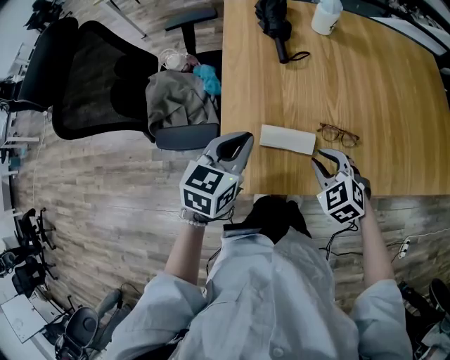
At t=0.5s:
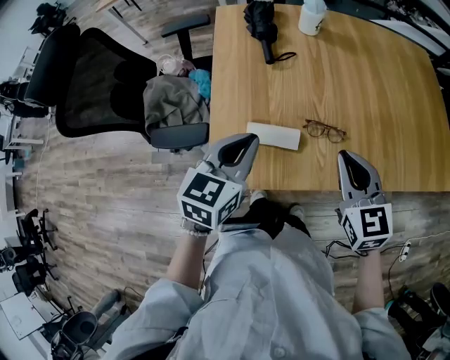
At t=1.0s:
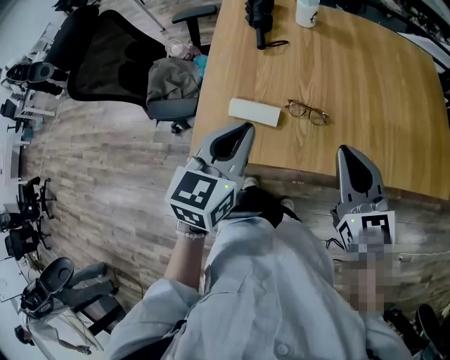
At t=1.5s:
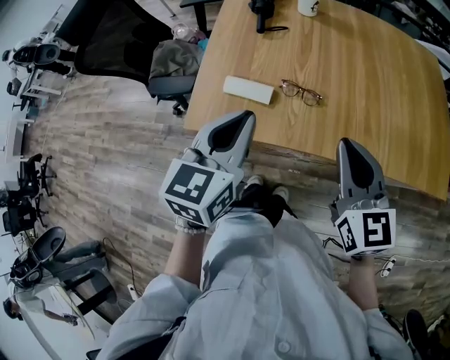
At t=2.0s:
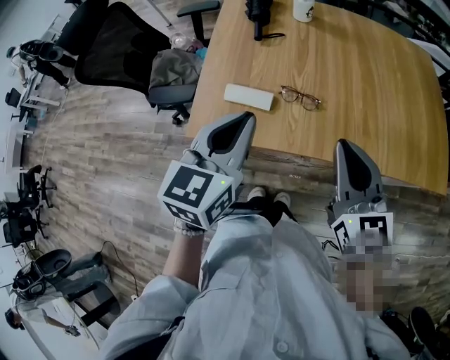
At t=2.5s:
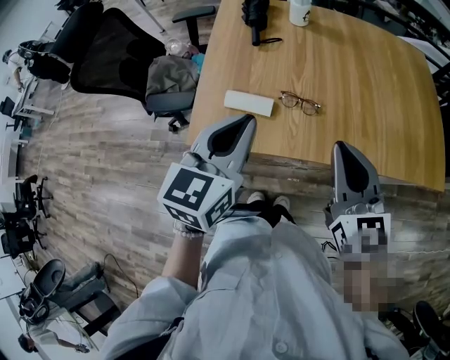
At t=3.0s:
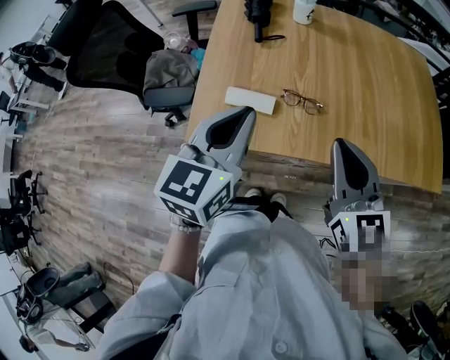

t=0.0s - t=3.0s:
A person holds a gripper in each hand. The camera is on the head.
t=0.0s - t=1.5s: The left gripper moves to the right, backward and upward, roughly 25 cm; the right gripper travels upward, to the right and backward by roughly 30 cm, tips its fingers upward by some 40 degrees, and closes.
t=1.5s - t=3.0s: The right gripper changes place by roughly 5 cm.

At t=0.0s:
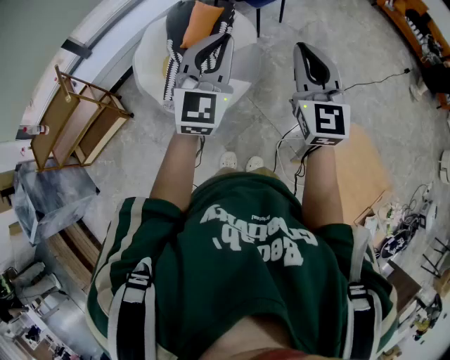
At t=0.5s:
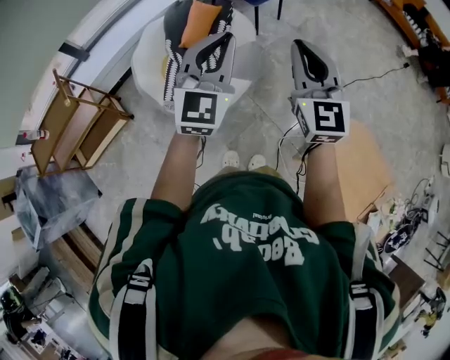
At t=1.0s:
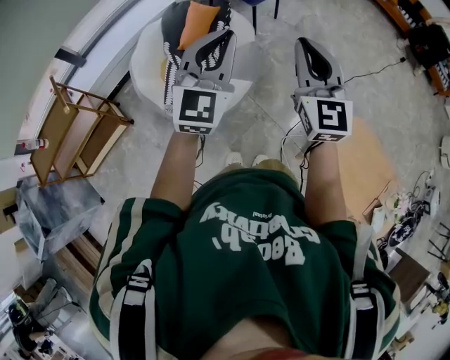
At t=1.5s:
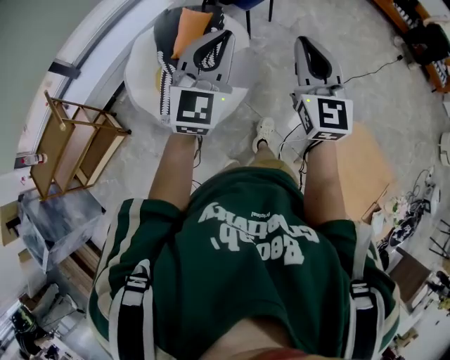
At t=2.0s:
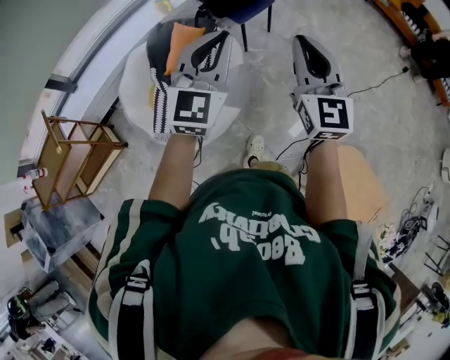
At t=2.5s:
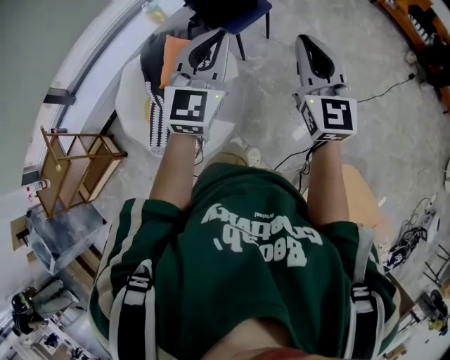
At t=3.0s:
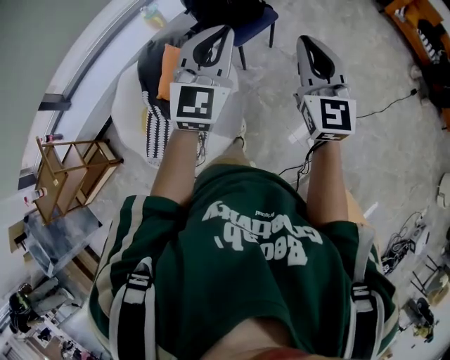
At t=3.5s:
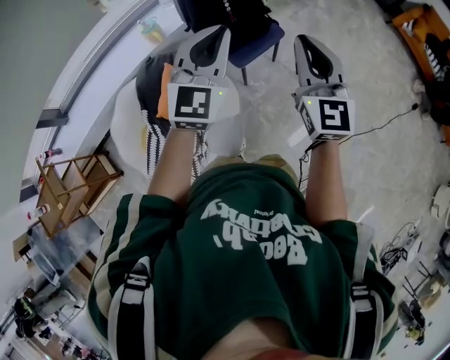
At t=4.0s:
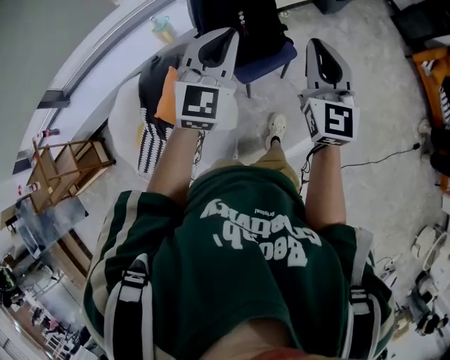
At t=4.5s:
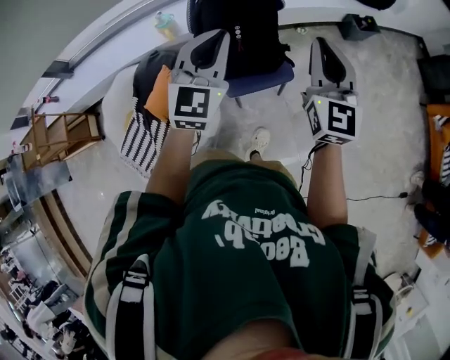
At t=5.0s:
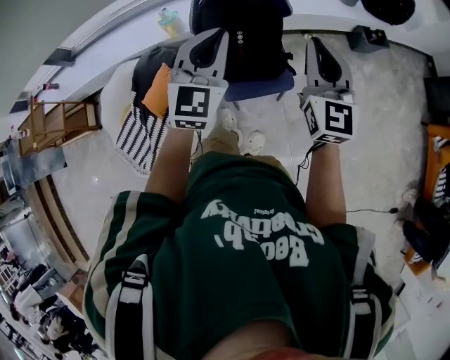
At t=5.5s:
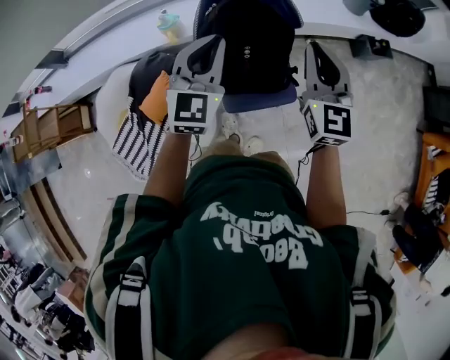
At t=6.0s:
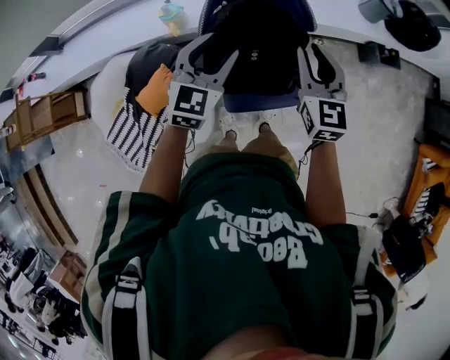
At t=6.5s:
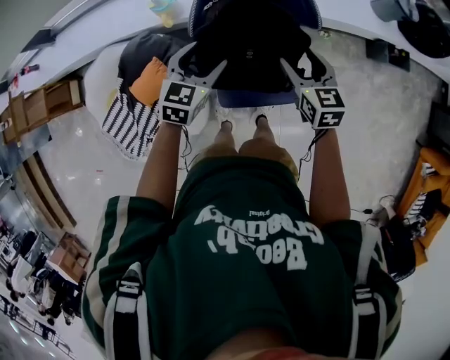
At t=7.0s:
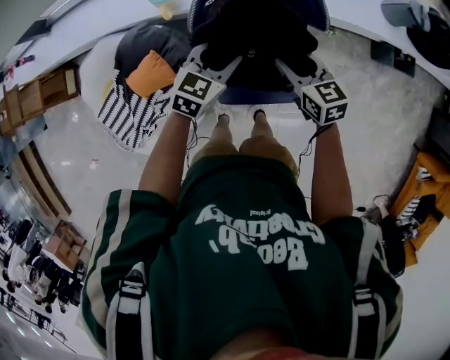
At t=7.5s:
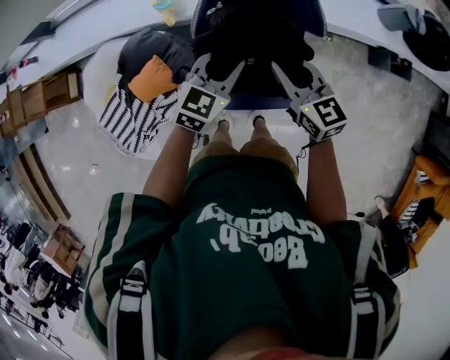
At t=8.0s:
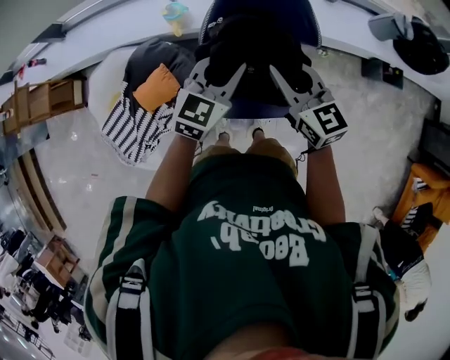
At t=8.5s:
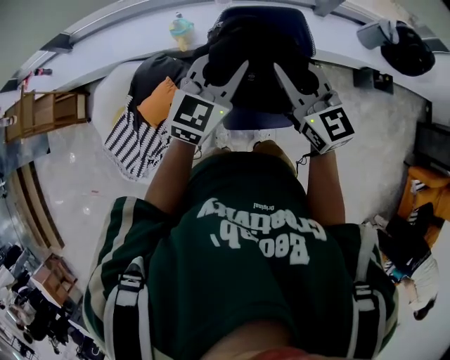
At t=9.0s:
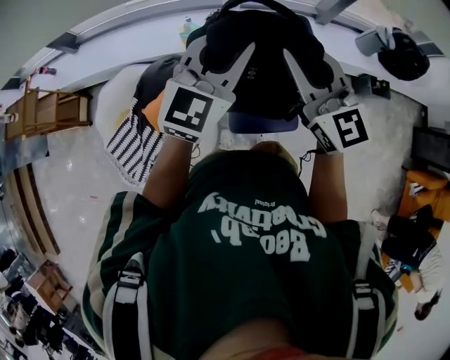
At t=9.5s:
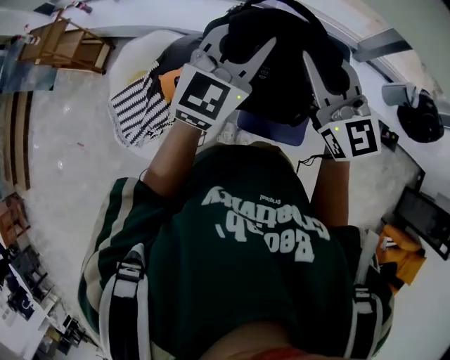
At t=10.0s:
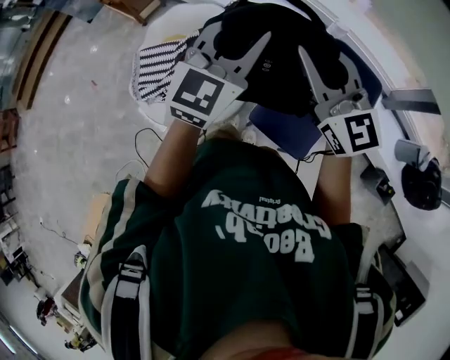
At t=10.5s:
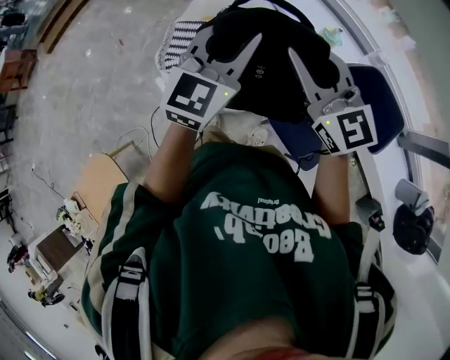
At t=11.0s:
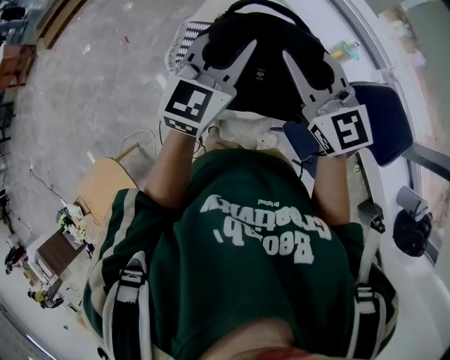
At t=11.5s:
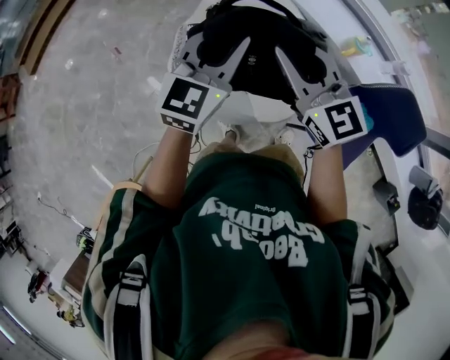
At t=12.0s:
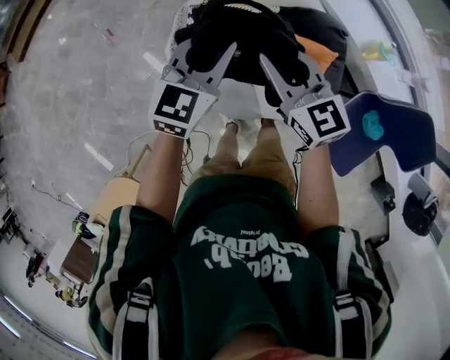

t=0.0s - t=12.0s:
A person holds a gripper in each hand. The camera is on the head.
t=0.0s - t=2.0s: The grippers both shift forward by approximately 30 cm.
t=2.0s - t=4.0s: Both grippers are carried forward, roughly 70 cm.
t=4.0s - t=6.0s: The left gripper travels forward and downward by approximately 40 cm, turns by approximately 30 degrees, and opens. Meanwhile the right gripper is displaced forward by some 50 cm, and swivels approximately 30 degrees.
t=6.0s - t=8.0s: The right gripper goes roughly 5 cm to the left, goes downward and returns, approximately 20 cm each way, turns by about 30 degrees, and opens, then closes again. The left gripper reaches some 15 cm downward, then returns, and closes up.
t=8.0s - t=10.0s: The right gripper ends up about 30 cm from where it was, and turns by roughly 40 degrees. The left gripper shifts by about 35 cm, and turns by about 40 degrees.
t=10.0s - t=12.0s: The two grippers travel together, to the left and forward, some 60 cm. The two grippers go about 25 cm downward. The left gripper rotates about 30 degrees. The right gripper changes its angle by approximately 30 degrees.

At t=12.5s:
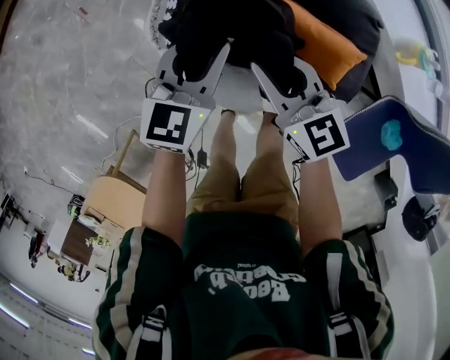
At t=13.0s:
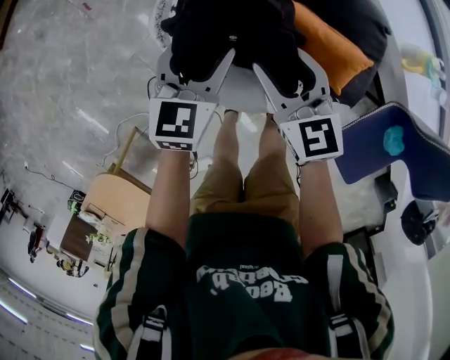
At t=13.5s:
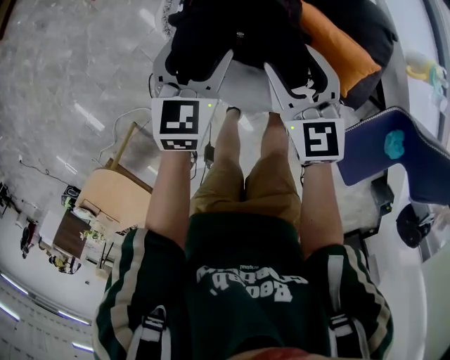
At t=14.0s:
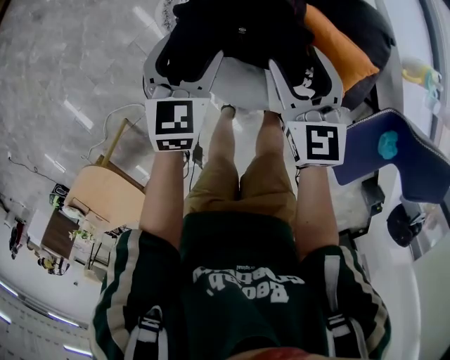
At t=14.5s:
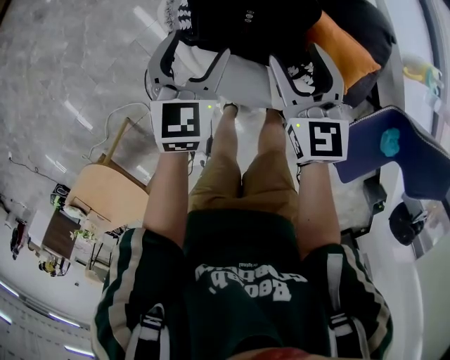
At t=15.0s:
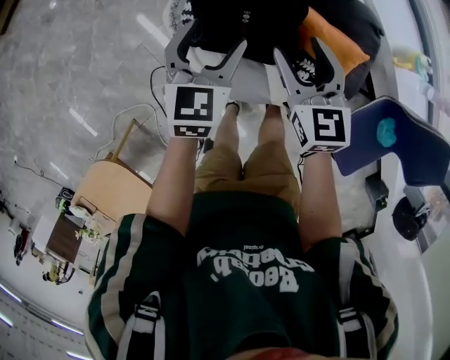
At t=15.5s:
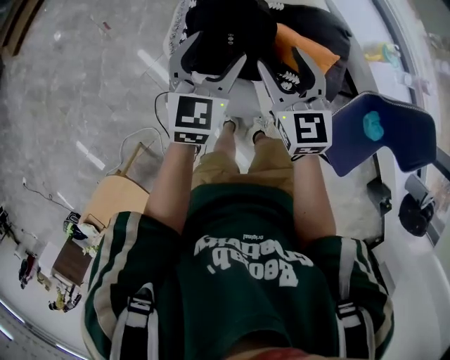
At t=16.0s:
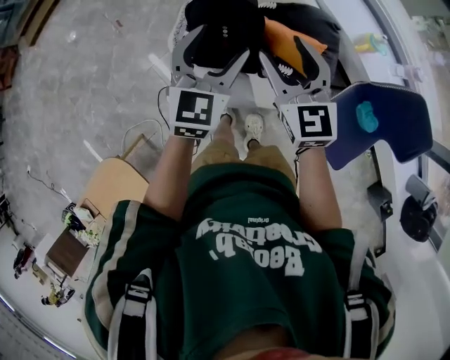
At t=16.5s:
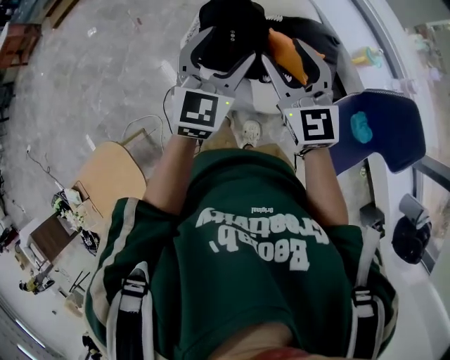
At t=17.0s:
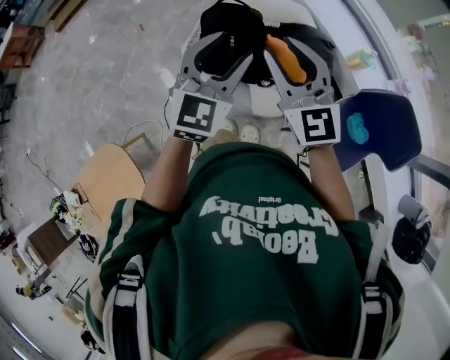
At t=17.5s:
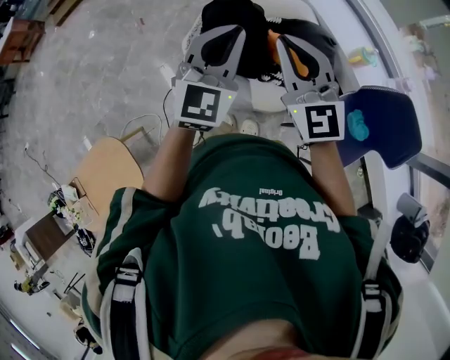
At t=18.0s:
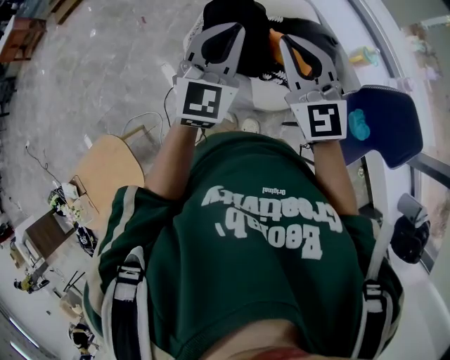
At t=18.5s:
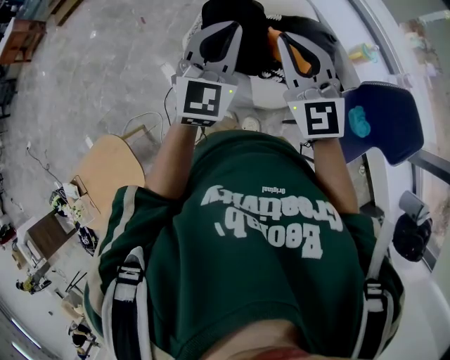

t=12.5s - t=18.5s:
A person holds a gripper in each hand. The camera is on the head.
t=12.5s - t=14.5s: The left gripper shifts some 15 cm to the left, and opens its fingers. Meanwhile the right gripper shifts about 5 cm to the left, and opens up.
t=14.5s - t=16.5s: The left gripper heads upward, backward and to the right, covering some 50 cm, and changes its angle by roughly 30 degrees. Meanwhile the right gripper shifts roughly 50 cm upward and backward, and changes its angle by about 30 degrees.
t=16.5s - t=18.5s: The left gripper is displaced upward by roughly 5 cm, and closes its fingers. Meanwhile the right gripper shifts some 10 cm upward and backward, and closes its fingers.

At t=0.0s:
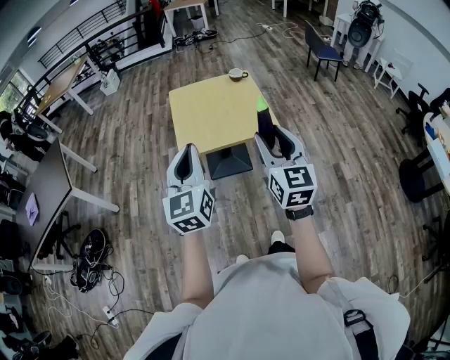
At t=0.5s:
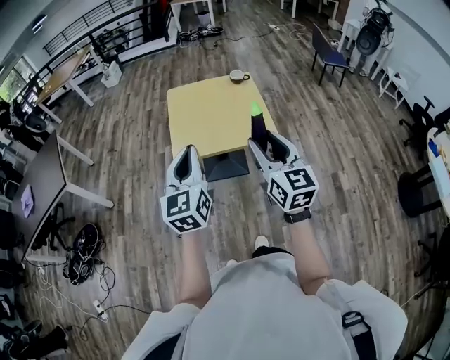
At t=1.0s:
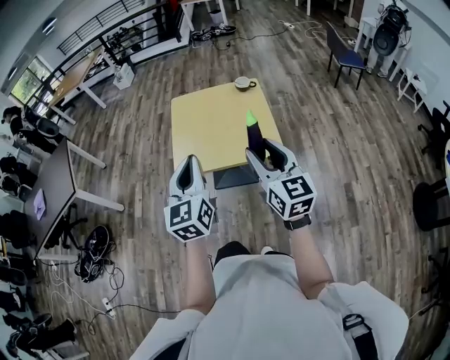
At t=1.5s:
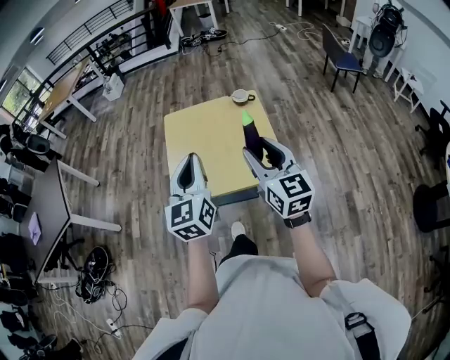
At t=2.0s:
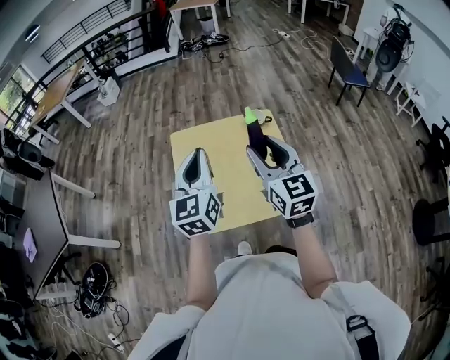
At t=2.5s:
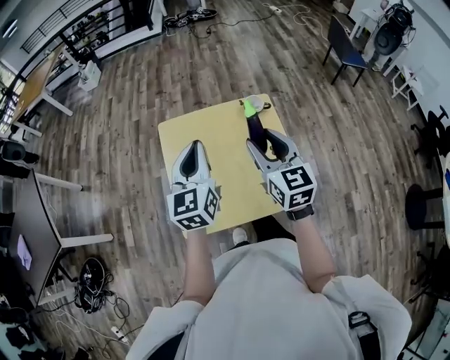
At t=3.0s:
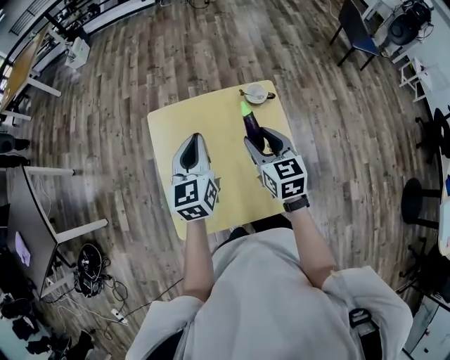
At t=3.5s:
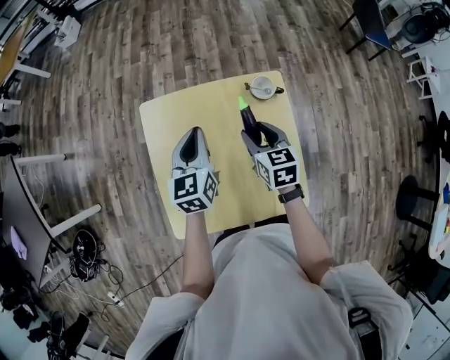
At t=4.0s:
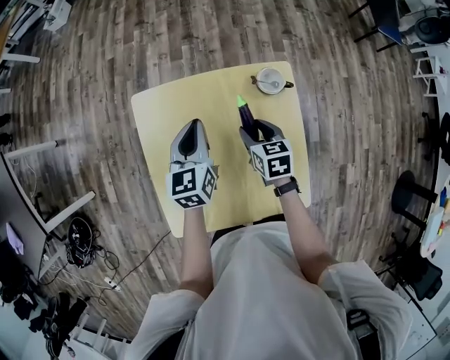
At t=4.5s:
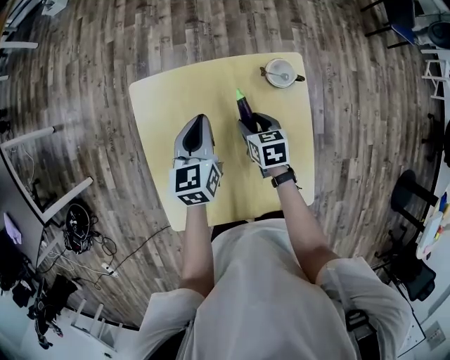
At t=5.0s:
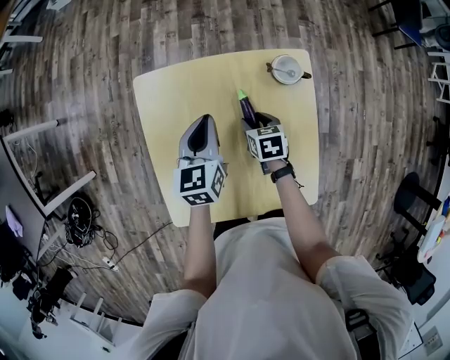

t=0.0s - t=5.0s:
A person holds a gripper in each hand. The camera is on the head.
t=0.0s - t=2.5s: Both grippers are carried forward, some 50 cm.
t=2.5s - t=5.0s: The grippers both shift downward and forward by some 35 cm. The left gripper turns by approximately 20 degrees. Meanwhile the right gripper points its fingers roughly 50 degrees further downward.
